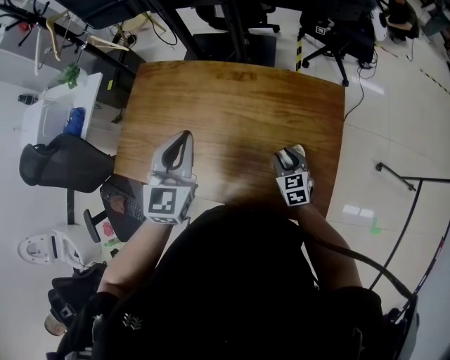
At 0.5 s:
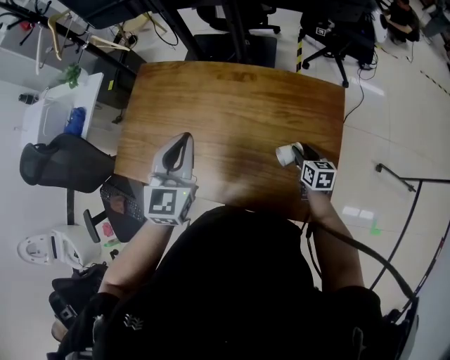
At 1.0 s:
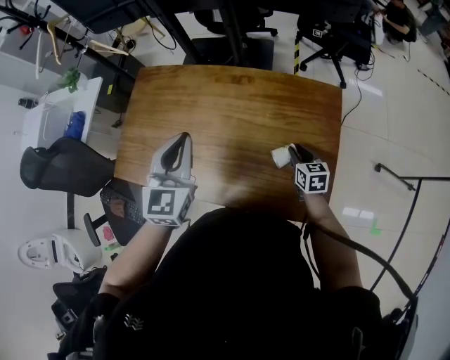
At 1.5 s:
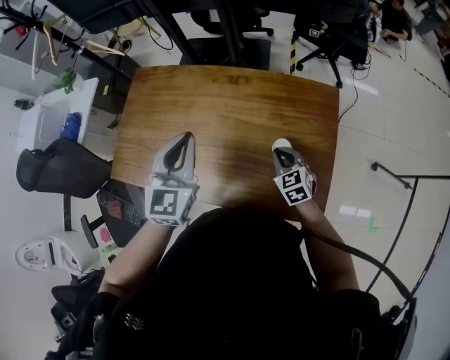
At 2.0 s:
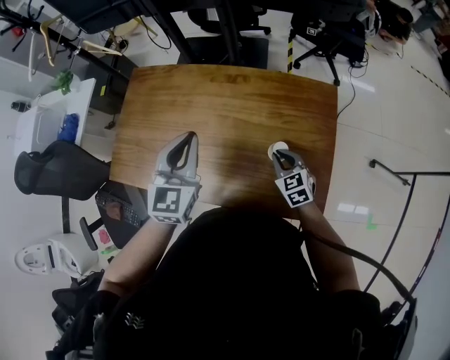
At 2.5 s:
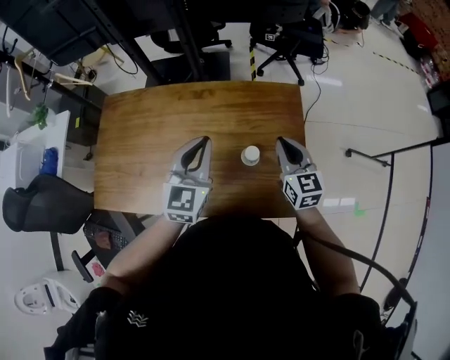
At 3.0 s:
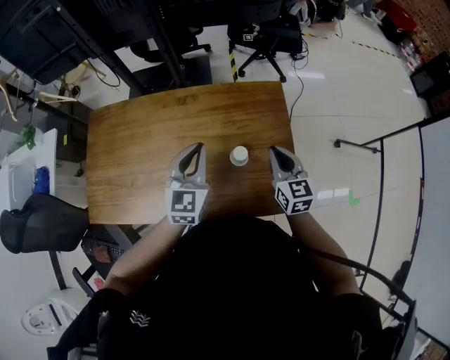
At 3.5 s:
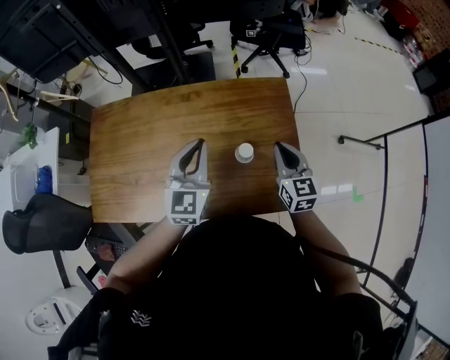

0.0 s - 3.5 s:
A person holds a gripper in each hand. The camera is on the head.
0.0 s - 2.0 s: The right gripper reaches approximately 10 cm to the right, then returns, and closes its fingers.
2.0 s - 3.5 s: The left gripper goes roughly 10 cm to the right, while the right gripper heads upward and to the right, covering approximately 15 cm, and swivels some 40 degrees.

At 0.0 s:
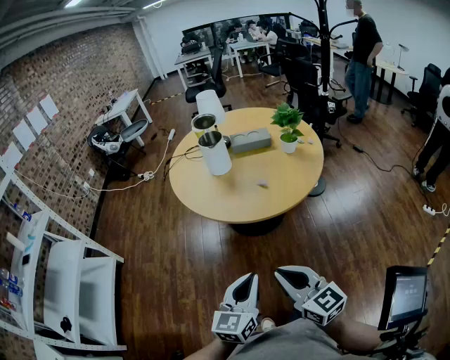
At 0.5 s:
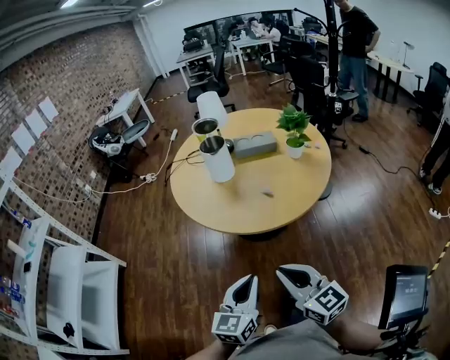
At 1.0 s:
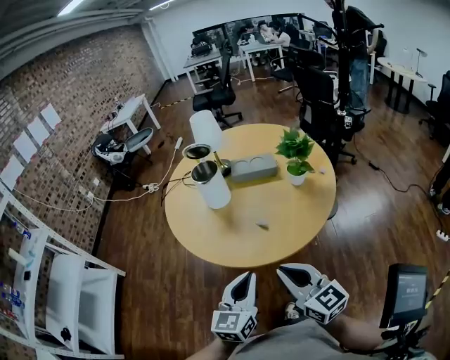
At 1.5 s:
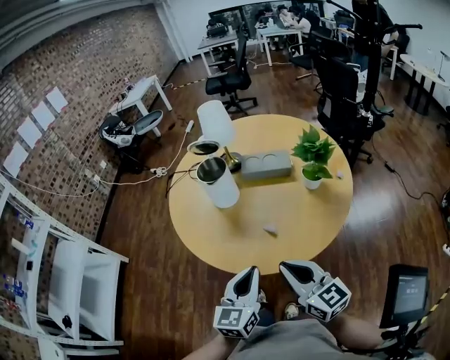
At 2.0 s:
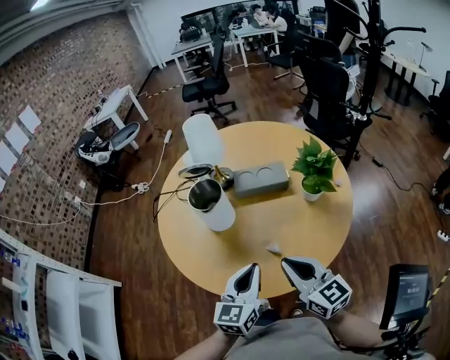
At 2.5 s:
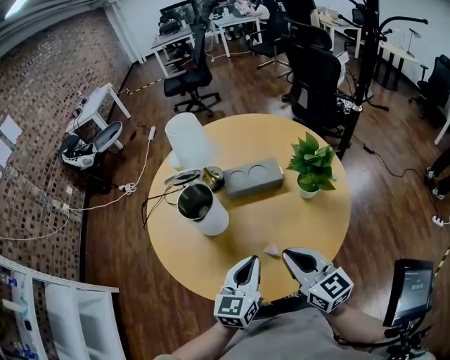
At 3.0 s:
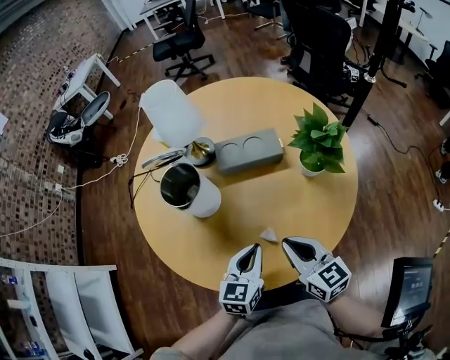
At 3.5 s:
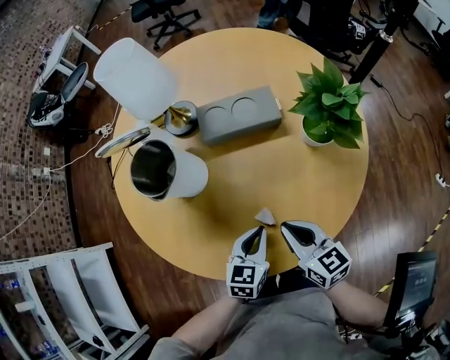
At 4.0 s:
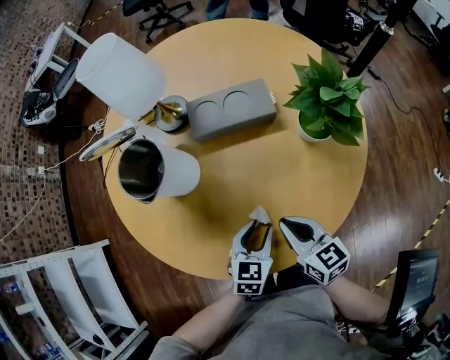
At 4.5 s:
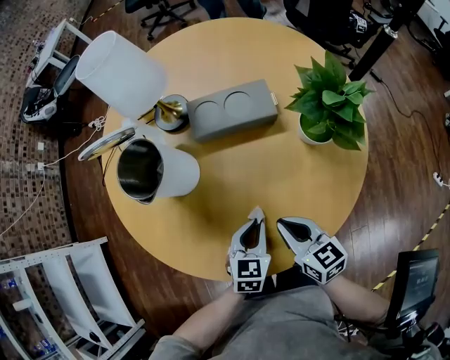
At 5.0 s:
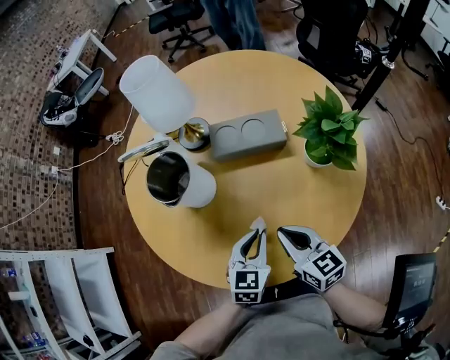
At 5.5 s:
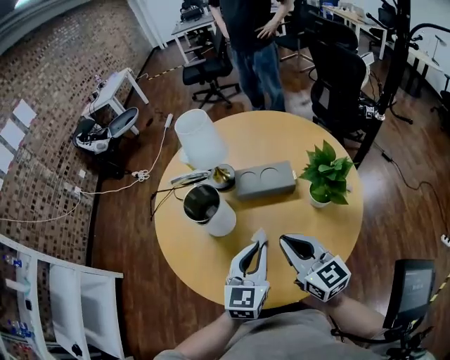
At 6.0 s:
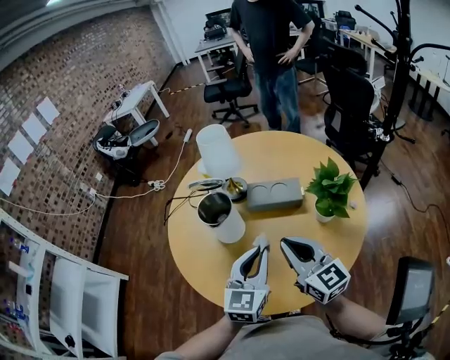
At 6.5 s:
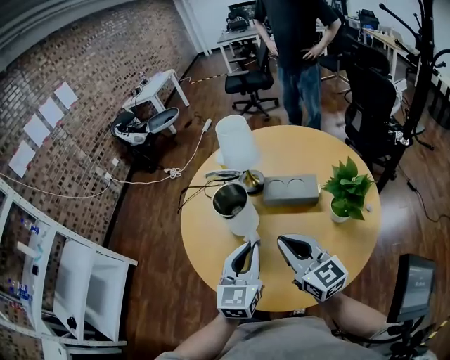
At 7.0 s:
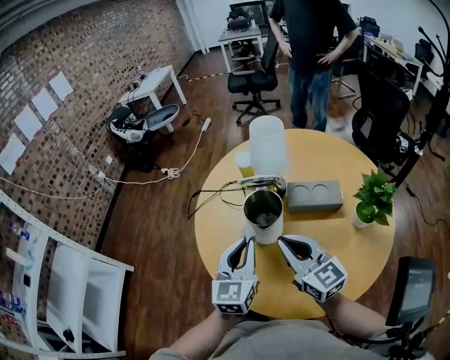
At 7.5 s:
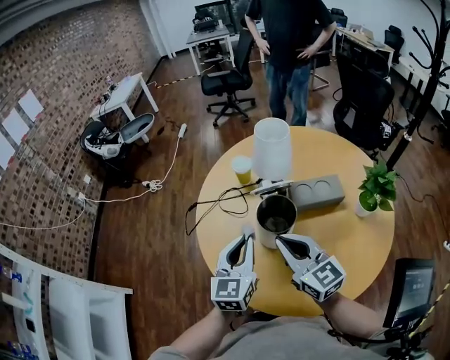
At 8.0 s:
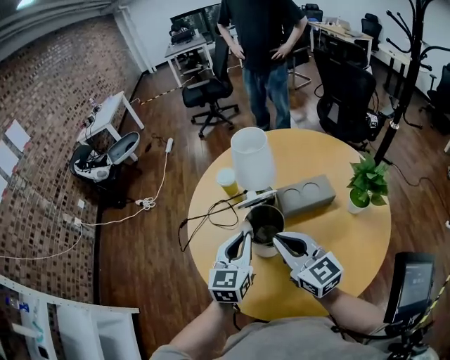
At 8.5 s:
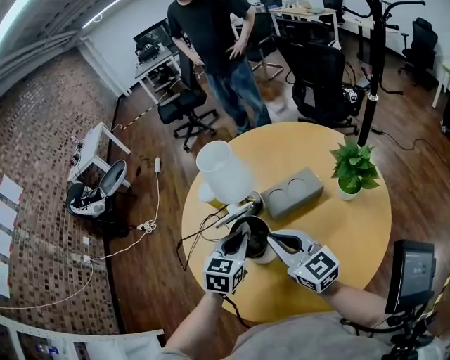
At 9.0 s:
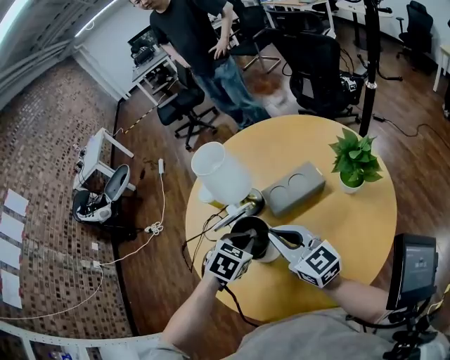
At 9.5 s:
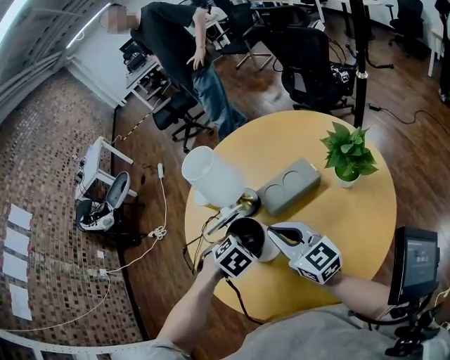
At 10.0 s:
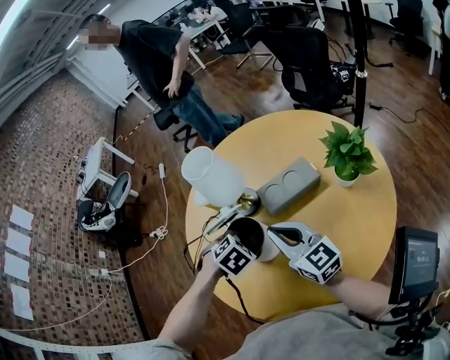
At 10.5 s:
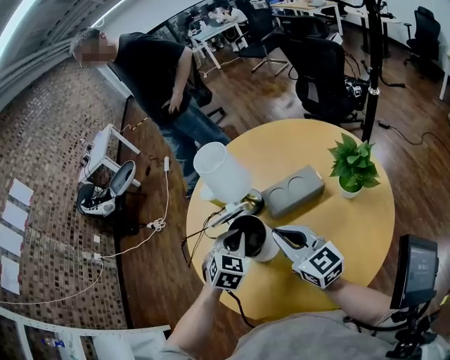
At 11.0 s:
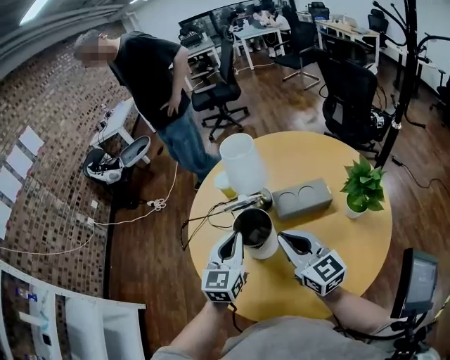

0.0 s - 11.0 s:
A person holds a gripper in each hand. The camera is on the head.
0.0 s - 2.0 s: The pair of grippers is taken forward, roughly 40 cm.
2.0 s - 3.5 s: The right gripper goes roughly 20 cm downward and forward, and rotates roughly 20 degrees. Meanwhile the left gripper is displaced downward by approximately 20 cm, and turns by approximately 30 degrees.
3.5 s - 5.5 s: Both grippers travel together upward, roughly 20 cm. The left gripper turns by roughly 30 degrees, and opens, then closes again. The right gripper changes its angle by some 20 degrees.
5.5 s - 7.5 s: Both grippers travel together to the left and forward, some 30 cm.
7.5 s - 9.0 s: The right gripper moves to the right and forward, roughly 10 cm. The left gripper travels to the right, downward and forward by approximately 15 cm, and points its fingers roughly 50 degrees further downward.
9.0 s - 11.0 s: The right gripper changes place by some 5 cm; the left gripper moves upward, some 10 cm, and angles its fingers upward, by some 50 degrees.

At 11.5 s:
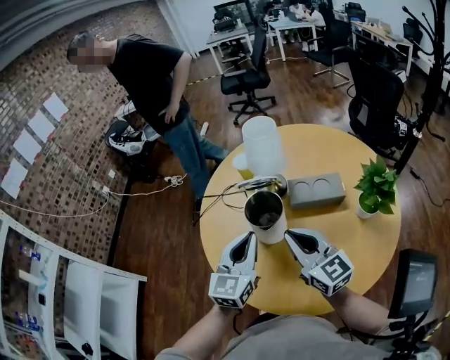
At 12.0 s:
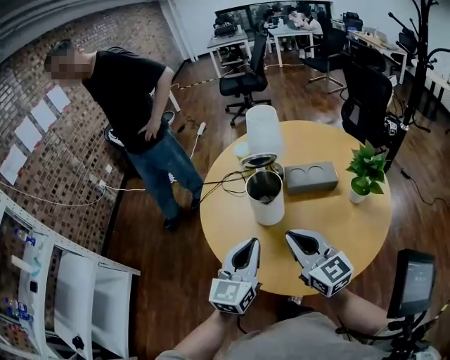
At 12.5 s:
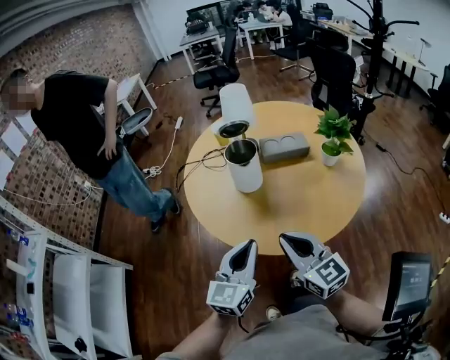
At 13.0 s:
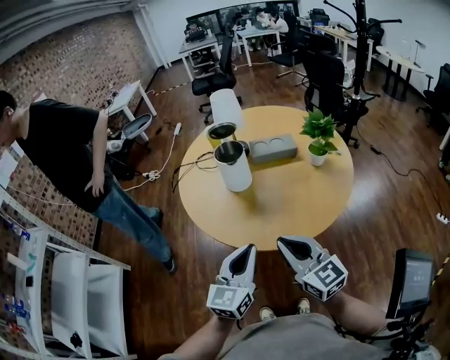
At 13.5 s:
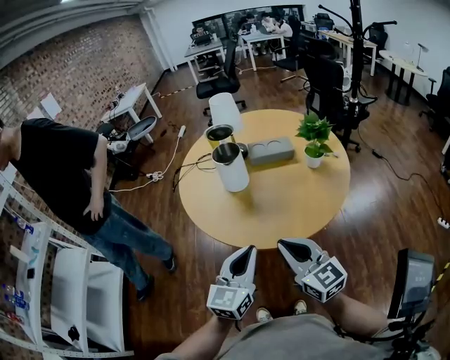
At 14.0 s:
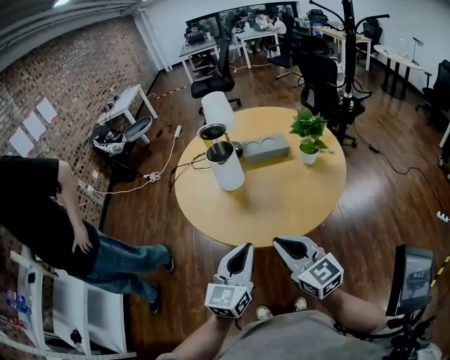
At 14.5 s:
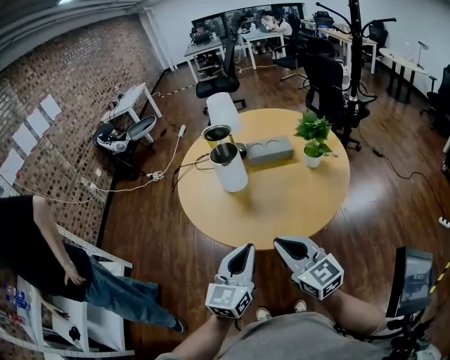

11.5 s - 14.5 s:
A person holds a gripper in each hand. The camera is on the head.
11.5 s - 13.0 s: The grippers both shift backward by about 35 cm.
13.0 s - 14.5 s: The grippers stay close to where they were, moving slightly.

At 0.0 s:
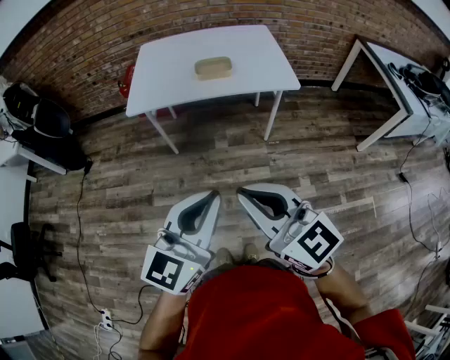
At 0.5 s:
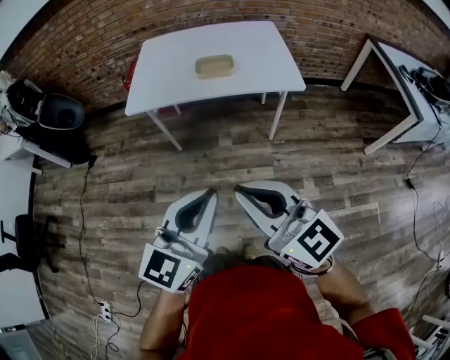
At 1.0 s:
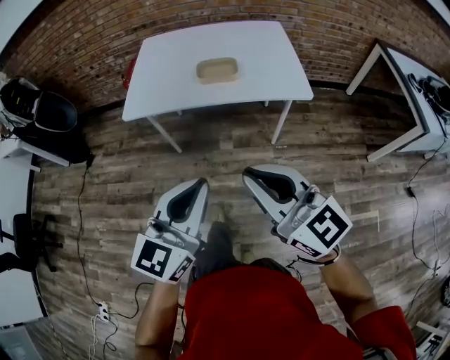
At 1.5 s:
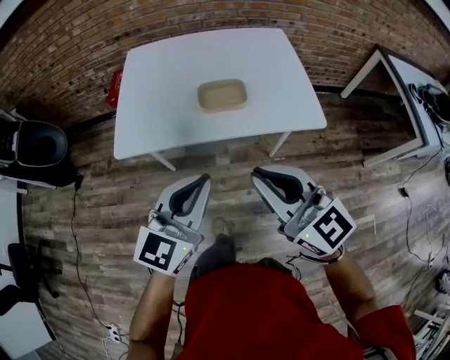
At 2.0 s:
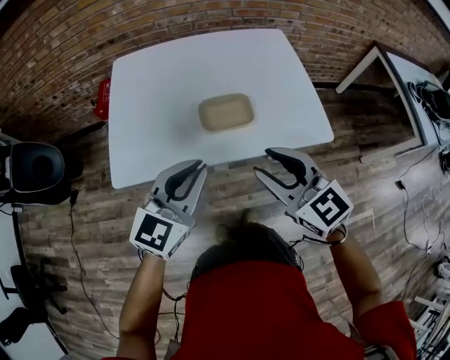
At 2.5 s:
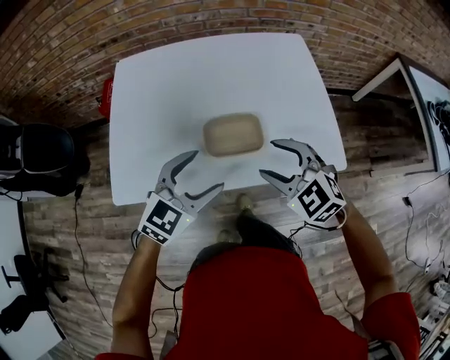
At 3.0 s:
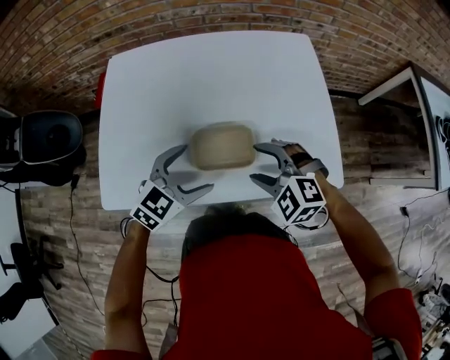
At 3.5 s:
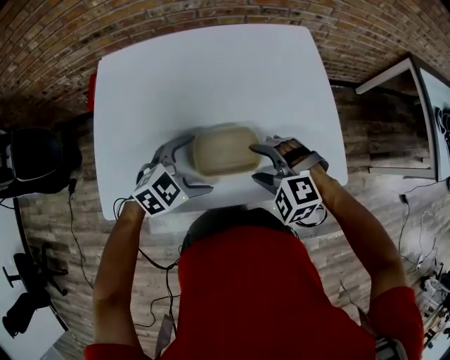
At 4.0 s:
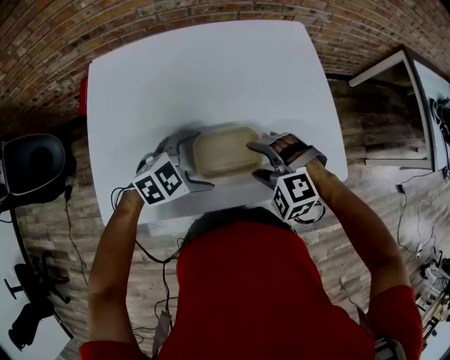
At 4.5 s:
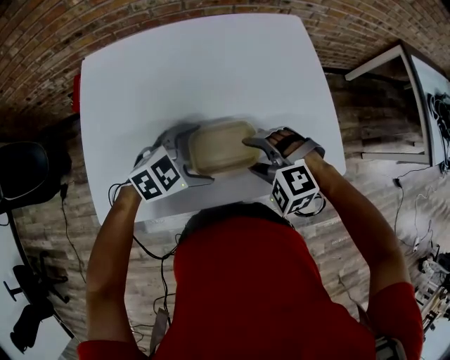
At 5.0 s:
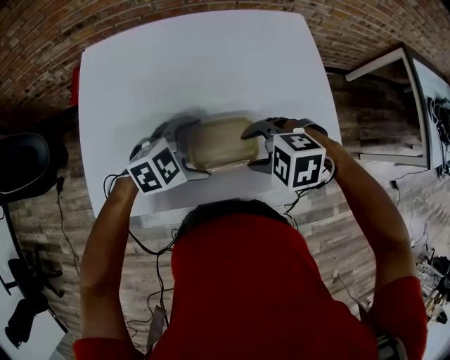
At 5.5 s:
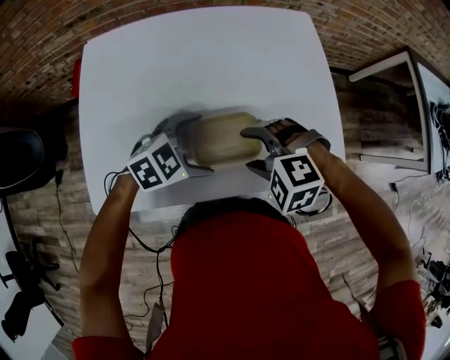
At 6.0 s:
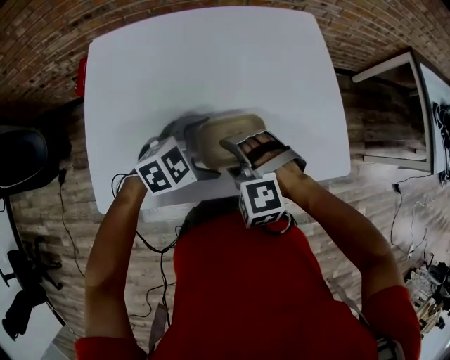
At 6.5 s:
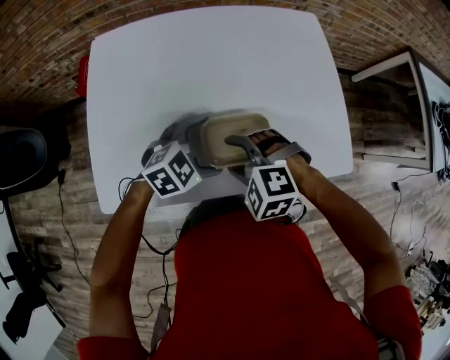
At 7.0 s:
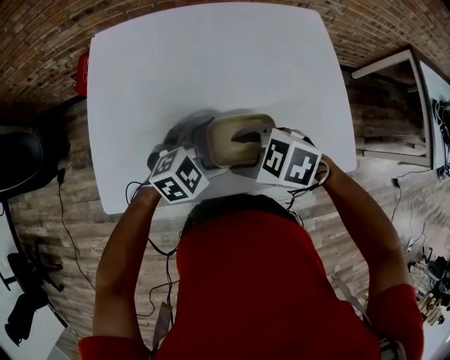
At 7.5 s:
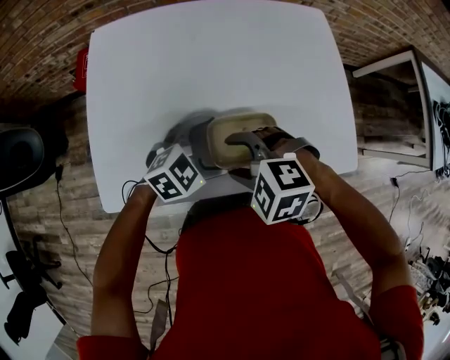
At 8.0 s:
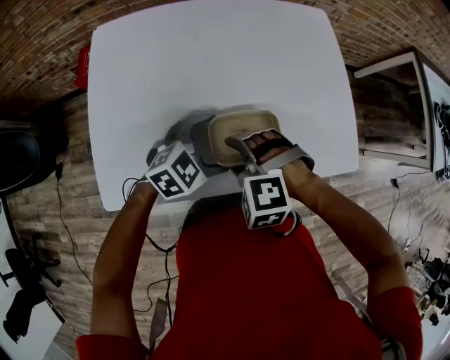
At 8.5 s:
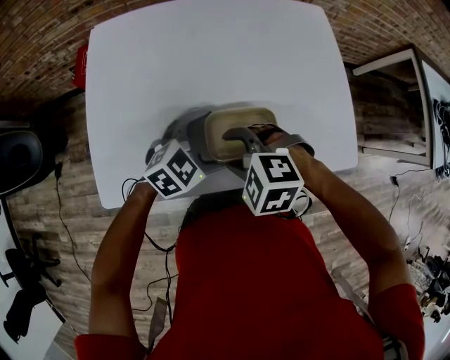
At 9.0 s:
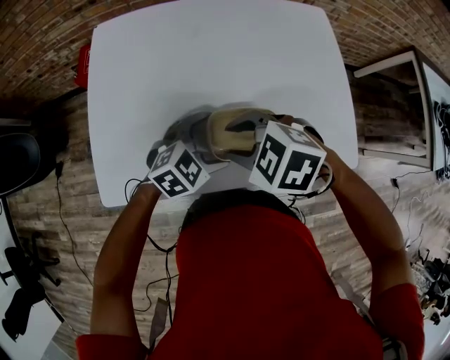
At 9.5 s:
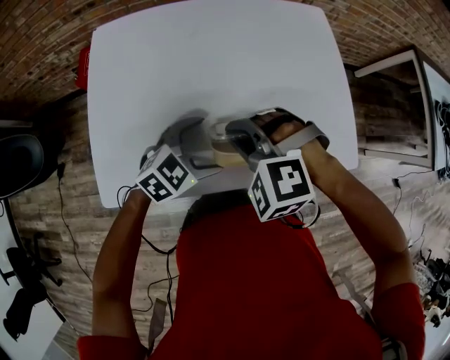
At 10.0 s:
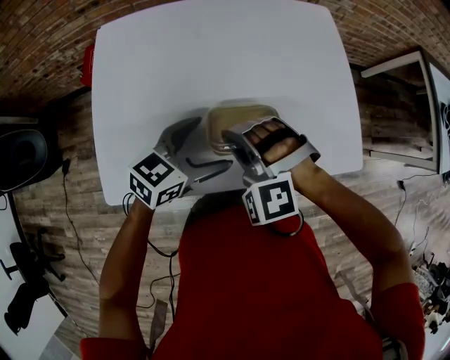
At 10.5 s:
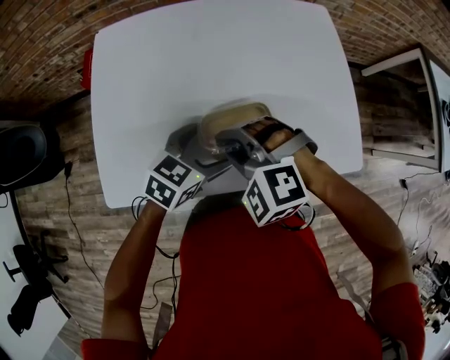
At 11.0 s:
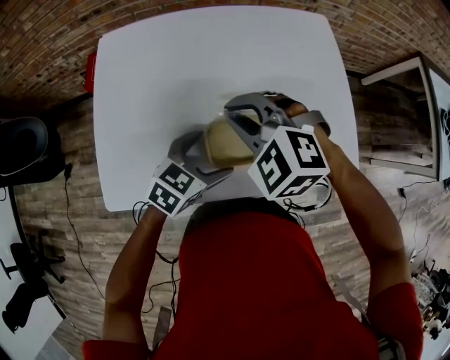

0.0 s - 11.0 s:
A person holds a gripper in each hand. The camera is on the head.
0.0 s - 2.0 s: The pair of grippers is taken forward, approximately 50 cm. The right gripper opens its fingers.
2.0 s - 3.5 s: Both grippers travel together forward and downward, about 25 cm. The left gripper tips its fingers downward by roughly 30 degrees, and opens its fingers; the right gripper points its fingers approximately 40 degrees further downward, and opens up.
5.5 s - 7.5 s: The right gripper moves roughly 10 cm.
7.5 s - 9.0 s: The grippers move only a little.
9.0 s - 11.0 s: The right gripper ends up approximately 10 cm from where it was, swivels roughly 30 degrees, and closes up, while the left gripper changes its angle by approximately 30 degrees.
